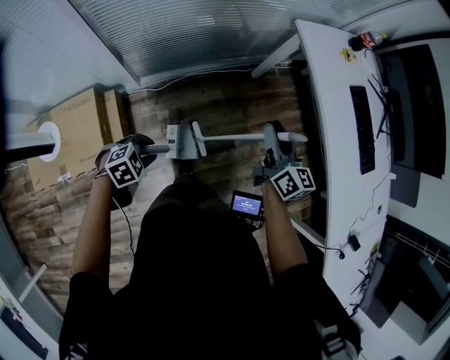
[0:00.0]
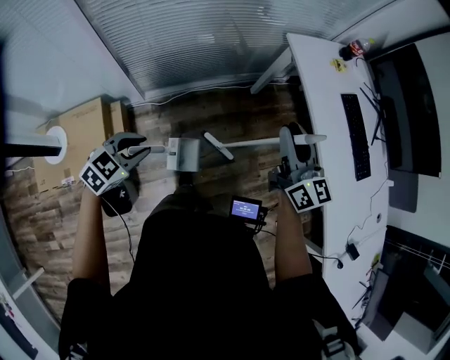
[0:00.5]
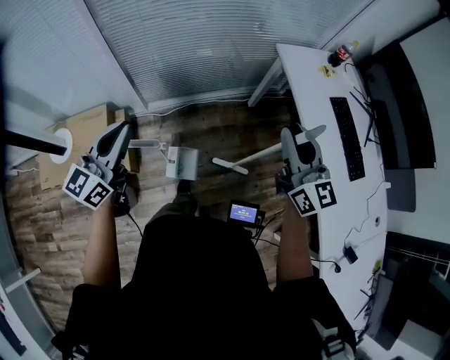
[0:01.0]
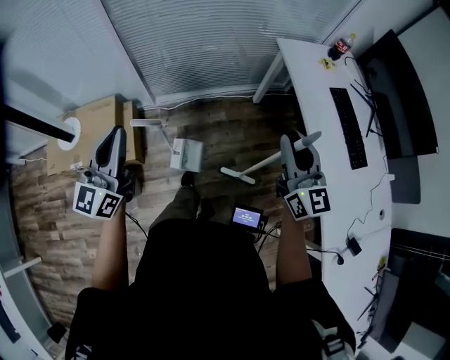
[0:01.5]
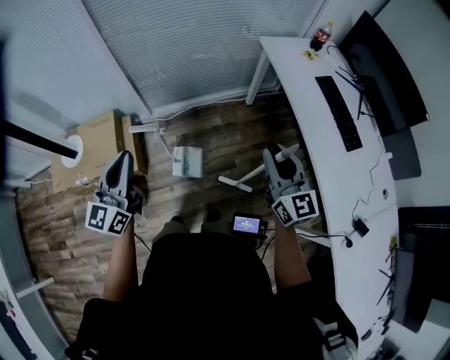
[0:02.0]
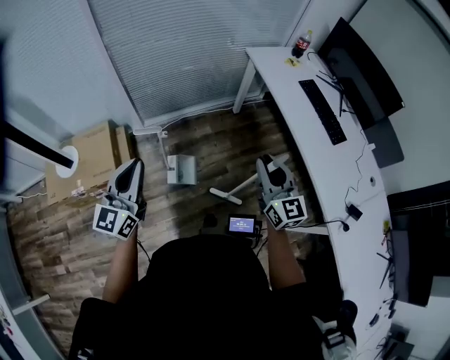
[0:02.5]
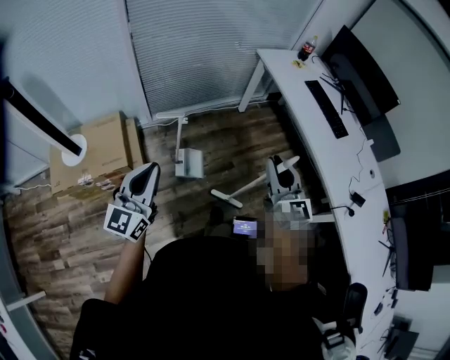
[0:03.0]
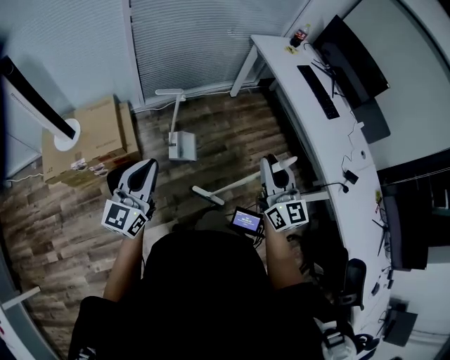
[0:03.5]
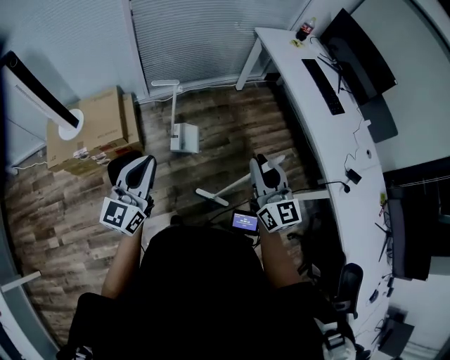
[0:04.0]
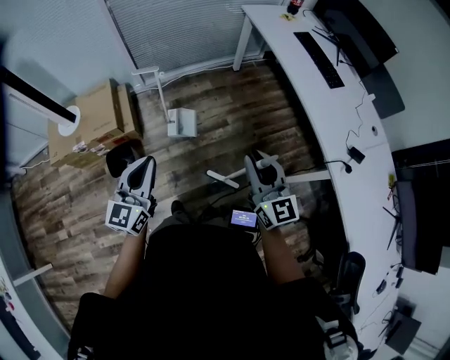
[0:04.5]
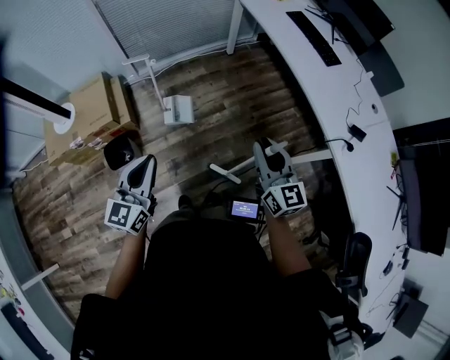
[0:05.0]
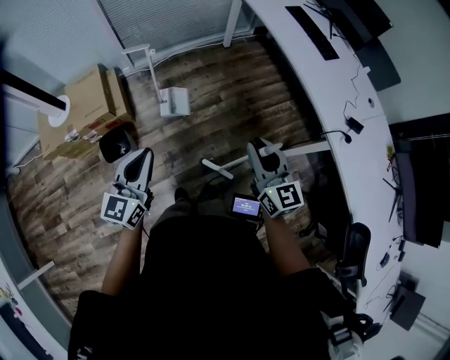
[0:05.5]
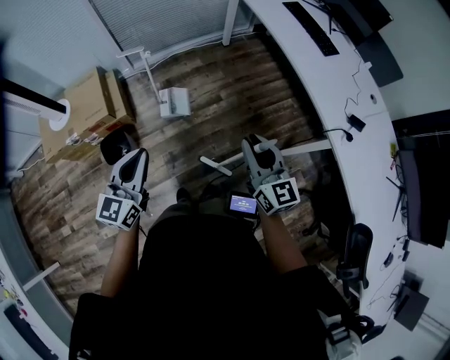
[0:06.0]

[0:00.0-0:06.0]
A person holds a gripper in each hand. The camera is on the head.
0:00.0 to 0:02.0: The left gripper shifts roughly 35 cm upward, points its fingers roughly 70 degrees further upward, and closes up; the right gripper changes place by about 30 cm, and swivels about 30 degrees.
0:02.0 to 0:04.0: Both grippers travel together backward, some 25 cm.
0:04.0 to 0:06.0: The right gripper moves to the right, backward and downward, about 15 cm, while the left gripper goes some 10 cm to the right and backward.

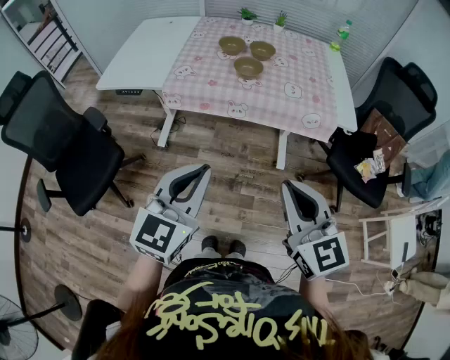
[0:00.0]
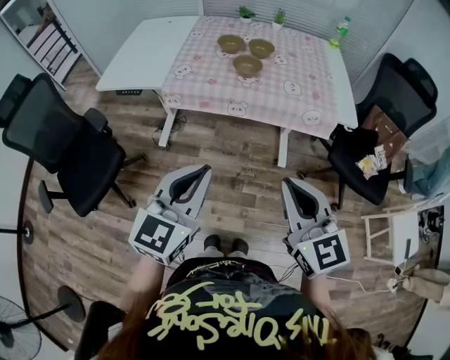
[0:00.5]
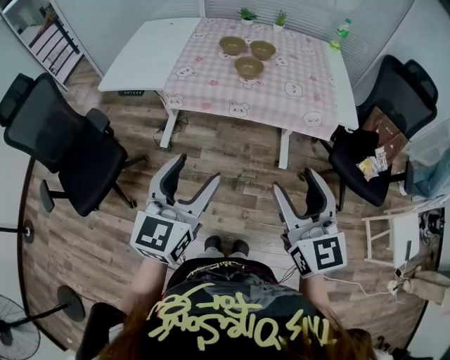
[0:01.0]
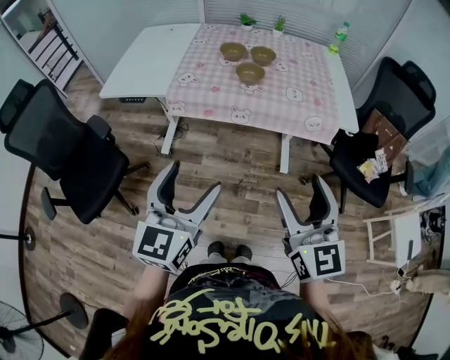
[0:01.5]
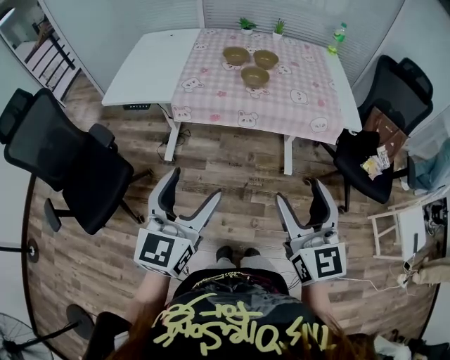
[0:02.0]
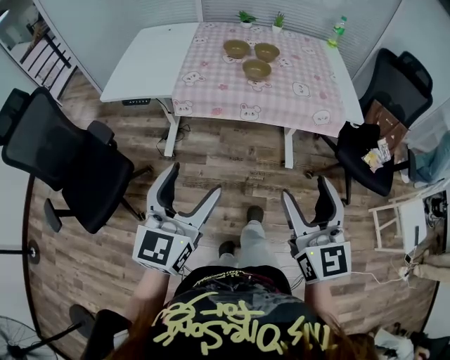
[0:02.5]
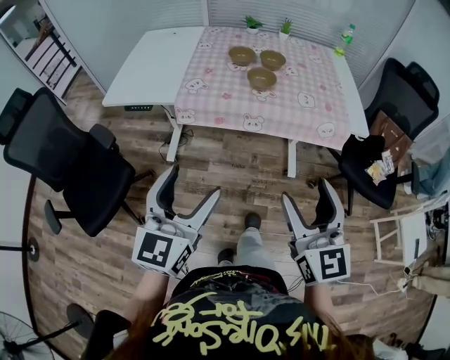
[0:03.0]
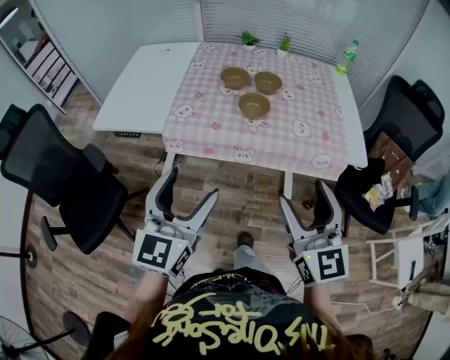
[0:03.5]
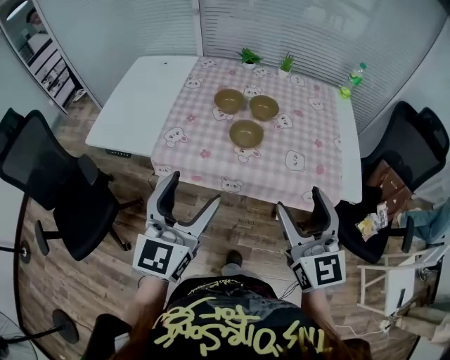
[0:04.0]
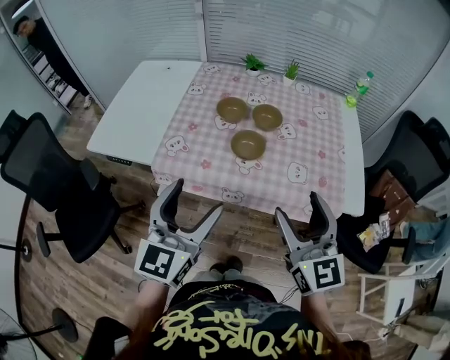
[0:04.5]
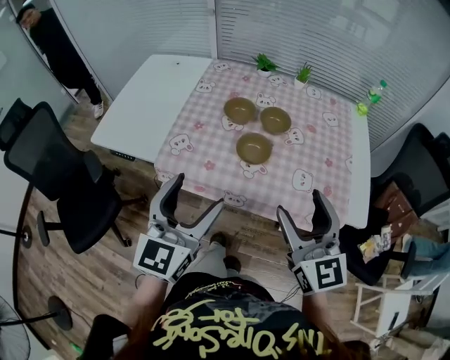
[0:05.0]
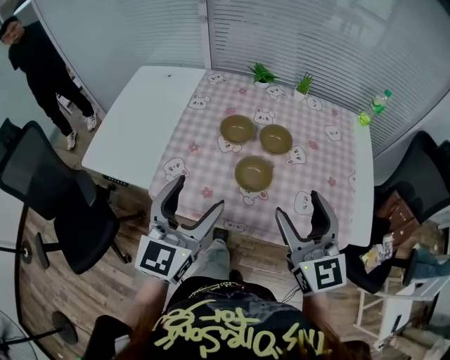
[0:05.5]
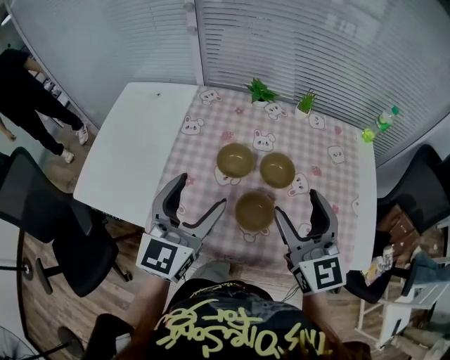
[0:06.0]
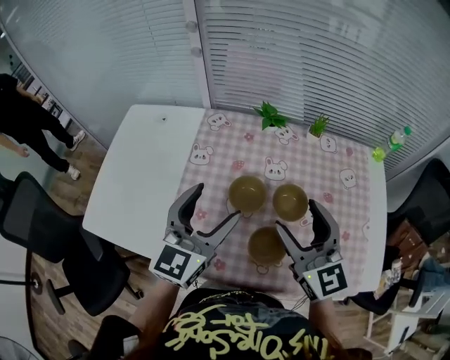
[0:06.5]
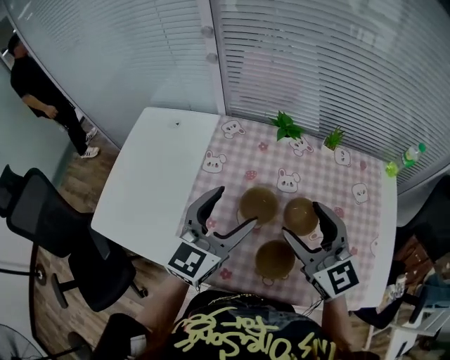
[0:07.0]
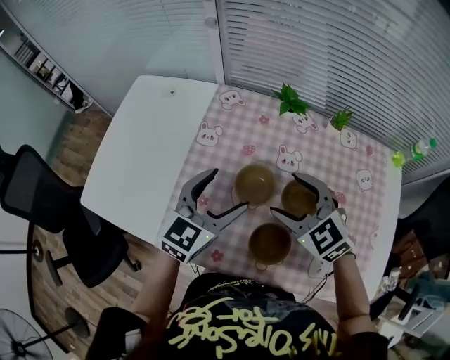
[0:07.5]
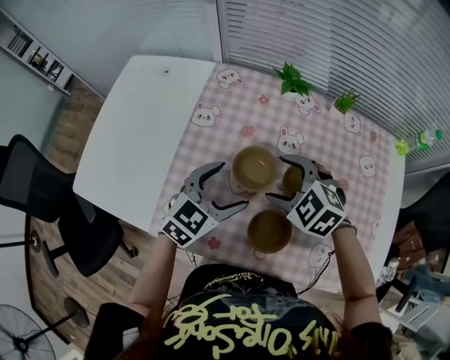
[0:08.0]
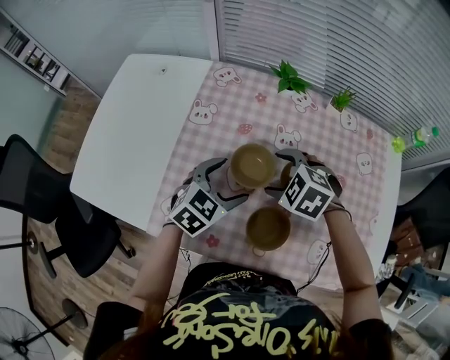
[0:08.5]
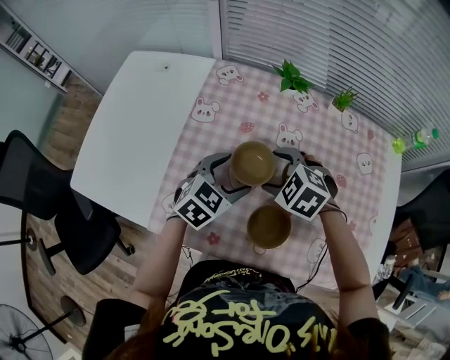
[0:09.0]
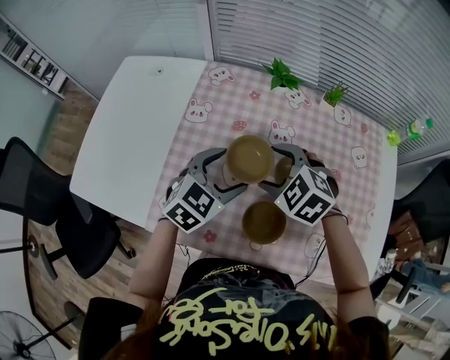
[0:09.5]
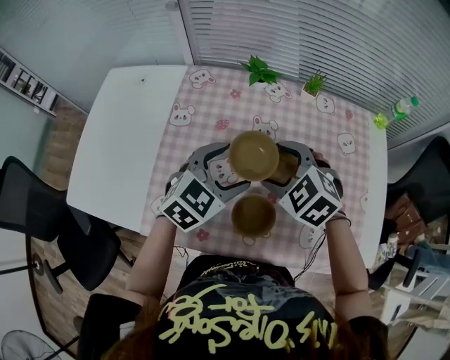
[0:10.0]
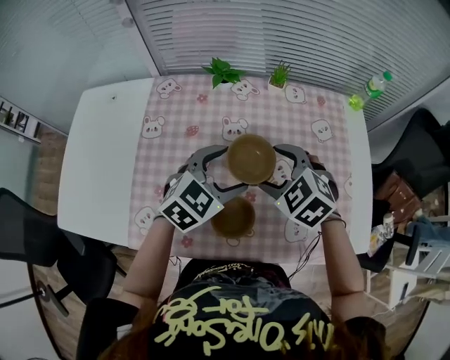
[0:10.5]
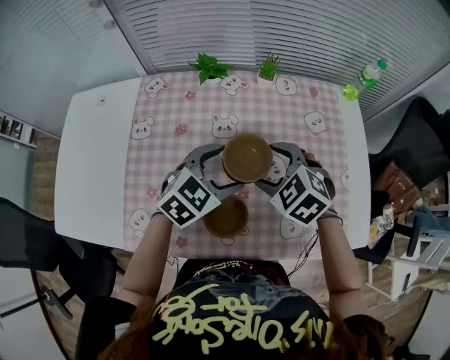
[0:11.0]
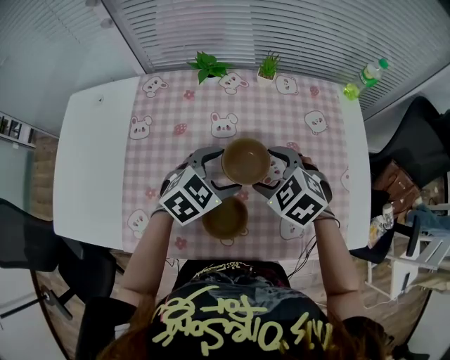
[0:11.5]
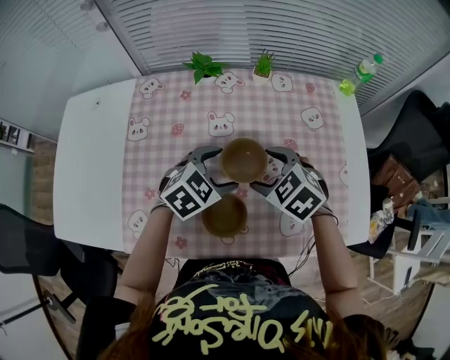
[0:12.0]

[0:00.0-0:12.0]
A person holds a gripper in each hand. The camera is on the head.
0:00.0 to 0:02.0: The left gripper is displaced to the left by approximately 5 cm, and opens up; the right gripper opens up.
0:02.0 to 0:04.0: The two grippers go some 25 cm forward.
0:04.0 to 0:06.0: Both grippers travel together forward, roughly 25 cm.
0:06.0 to 0:08.0: The right gripper moves downward, forward and to the left, about 25 cm, and tips its fingers downward by roughly 50 degrees; the left gripper goes some 20 cm downward and forward, and rotates about 30 degrees.
0:08.0 to 0:10.0: The right gripper moves approximately 5 cm. Meanwhile the left gripper goes approximately 5 cm to the right.
0:10.0 to 0:12.0: Both grippers travel together to the right and downward, approximately 10 cm.

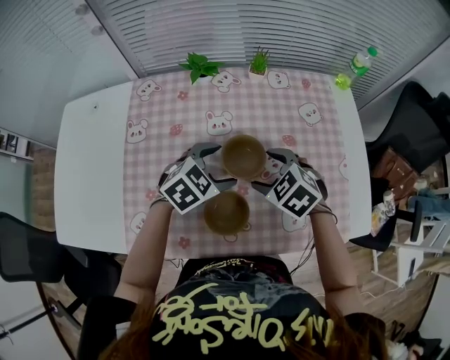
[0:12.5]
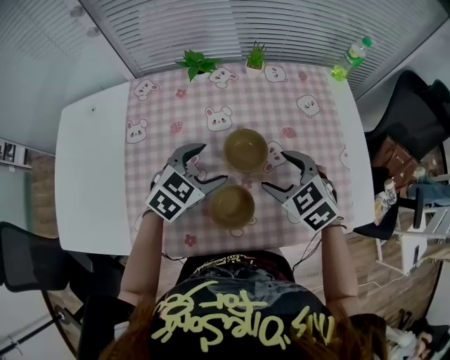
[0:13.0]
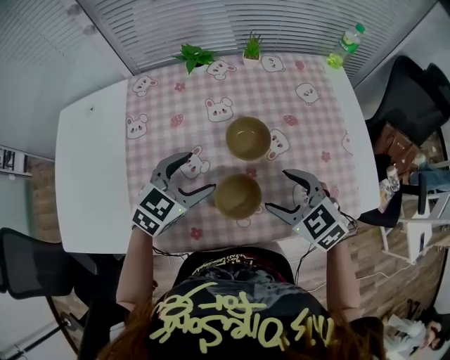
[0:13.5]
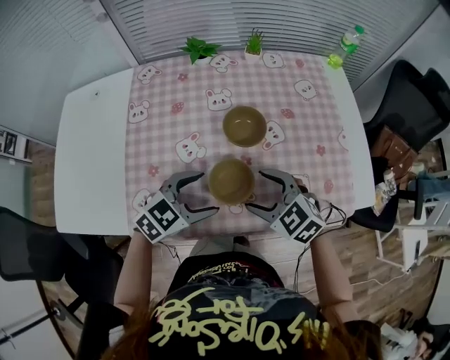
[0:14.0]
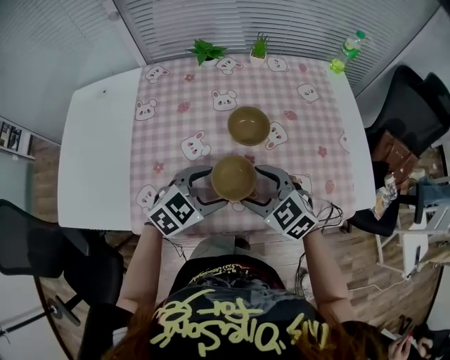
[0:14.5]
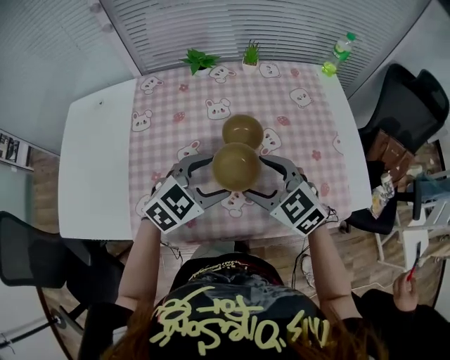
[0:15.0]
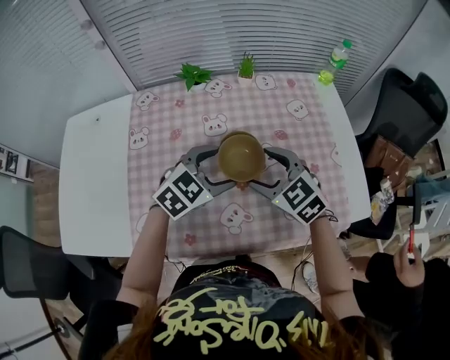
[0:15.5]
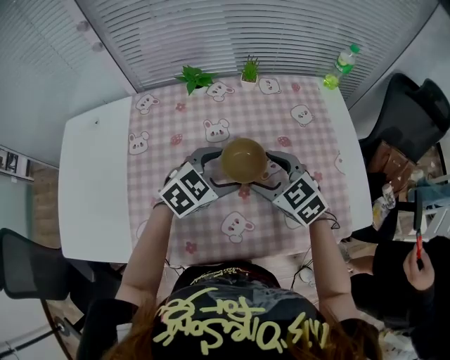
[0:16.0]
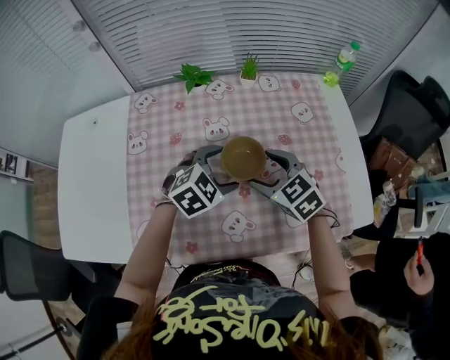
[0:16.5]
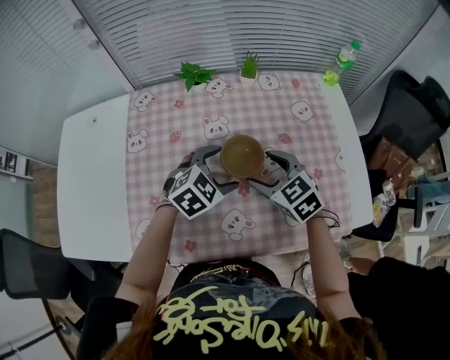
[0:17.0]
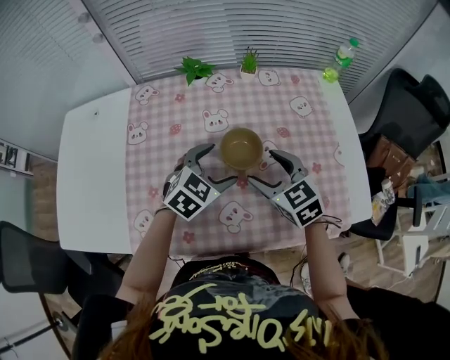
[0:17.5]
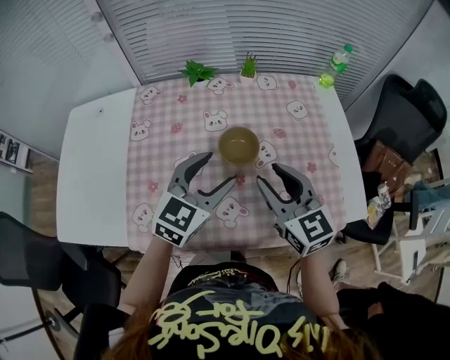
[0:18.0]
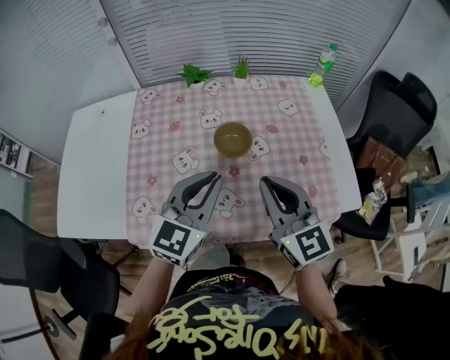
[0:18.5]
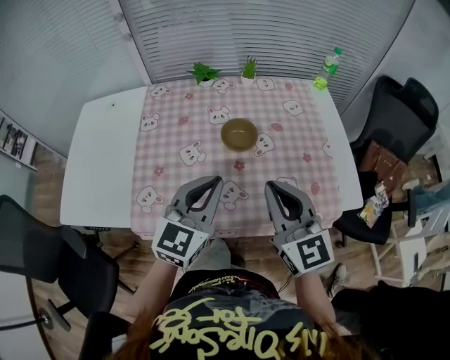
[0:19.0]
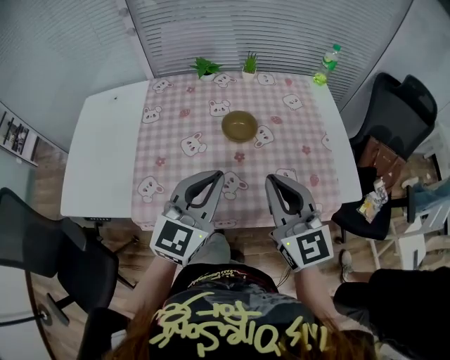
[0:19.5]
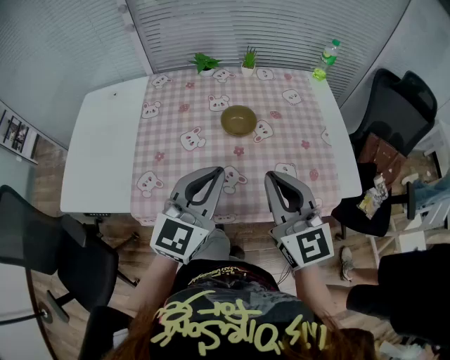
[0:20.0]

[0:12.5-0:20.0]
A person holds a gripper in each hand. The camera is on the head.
0:12.5 to 0:14.5: Both grippers move backward, some 15 cm.
0:14.5 to 0:16.5: Both grippers travel together forward, about 15 cm.
0:16.5 to 0:18.0: Both grippers travel together upward and backward, roughly 10 cm. The right gripper swivels about 30 degrees, and closes its fingers. Meanwhile the left gripper swivels some 40 degrees.
0:18.0 to 0:20.0: The two grippers go some 15 cm backward and upward. The right gripper closes its fingers. Meanwhile the left gripper closes up.

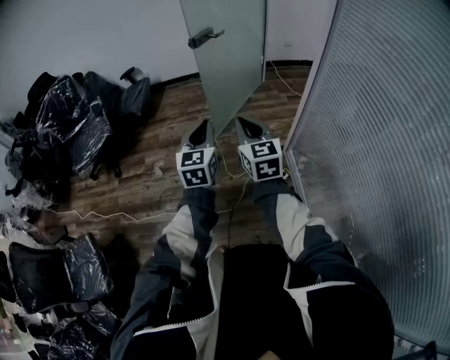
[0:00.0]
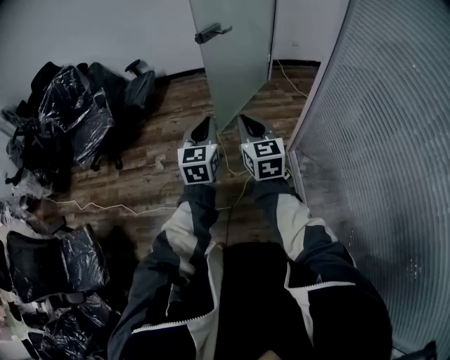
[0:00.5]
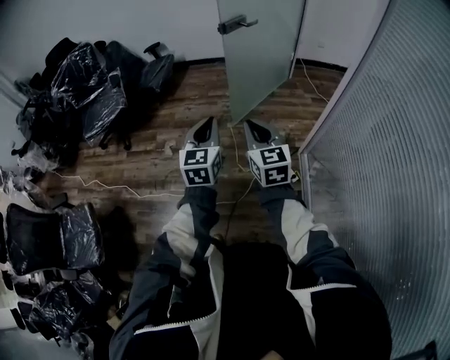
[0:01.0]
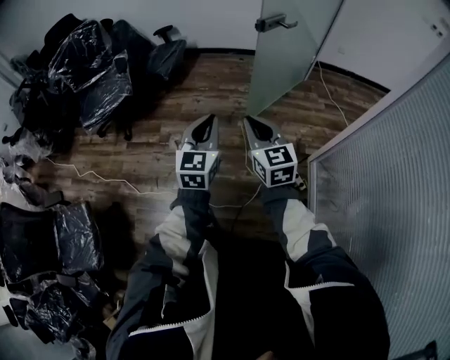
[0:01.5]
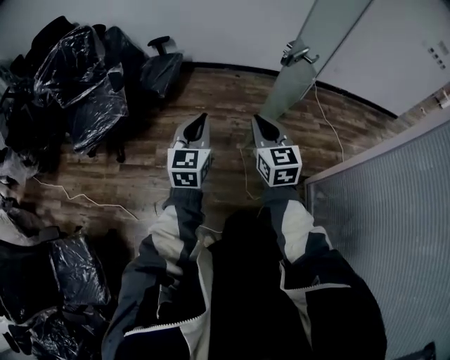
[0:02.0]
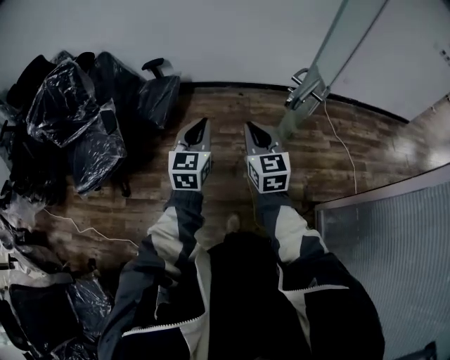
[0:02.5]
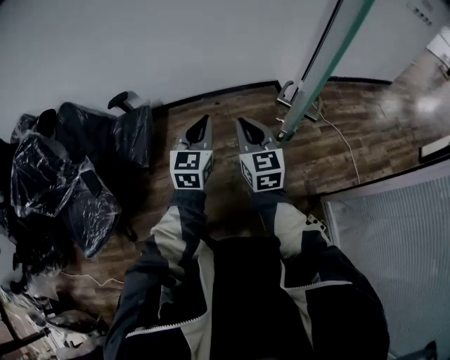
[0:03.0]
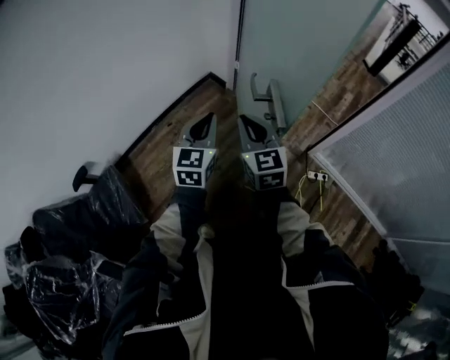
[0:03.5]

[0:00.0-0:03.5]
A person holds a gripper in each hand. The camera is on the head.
0:00.0 to 0:02.0: The right gripper heads forward and to the left, covering roughly 40 cm; the left gripper is displaced to the left and forward by about 40 cm.
0:02.0 to 0:03.5: Both grippers are carried roughly 50 cm. The left gripper turns by approximately 50 degrees; the right gripper swivels approximately 50 degrees.
